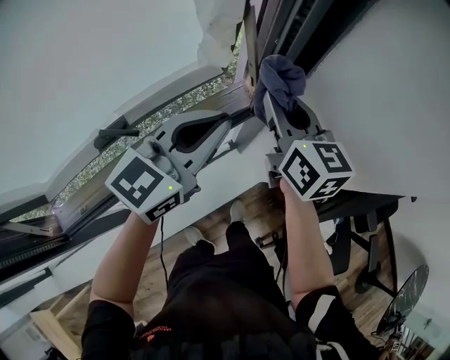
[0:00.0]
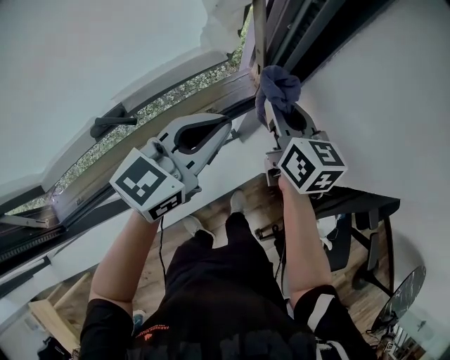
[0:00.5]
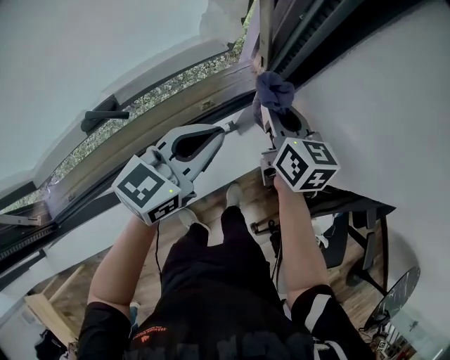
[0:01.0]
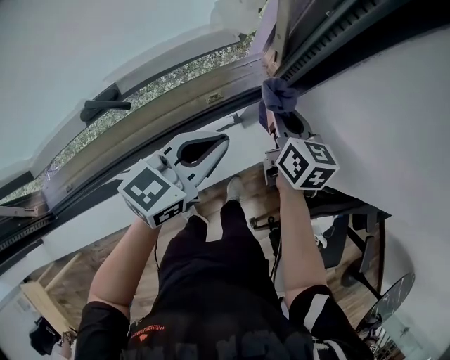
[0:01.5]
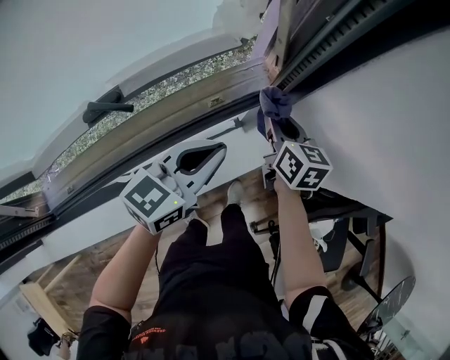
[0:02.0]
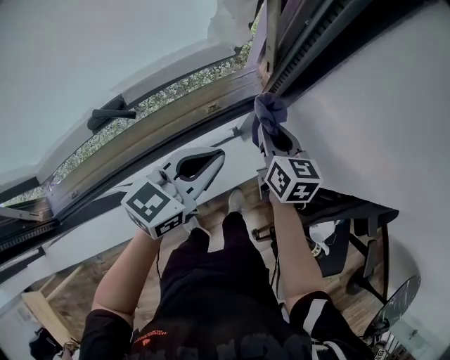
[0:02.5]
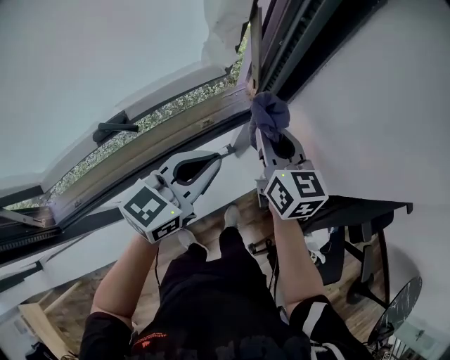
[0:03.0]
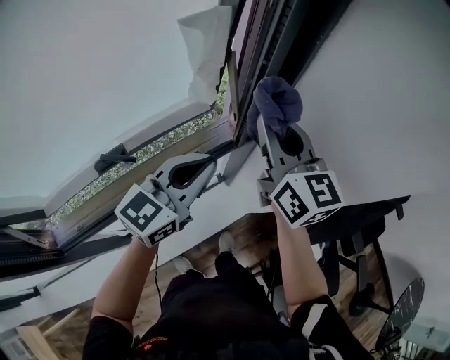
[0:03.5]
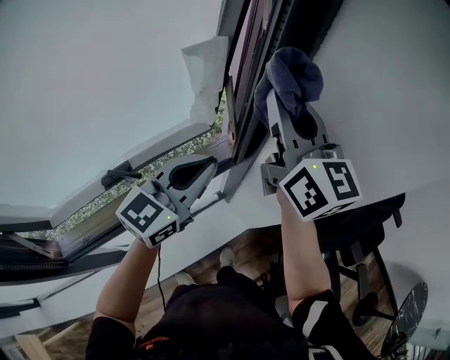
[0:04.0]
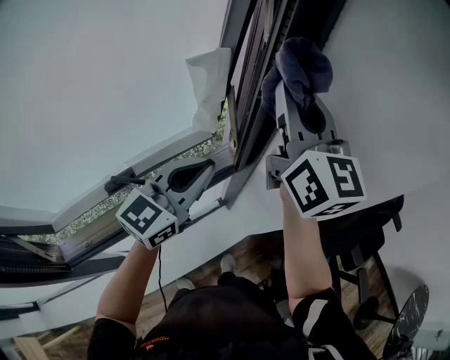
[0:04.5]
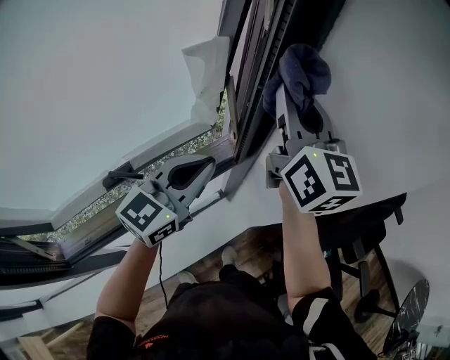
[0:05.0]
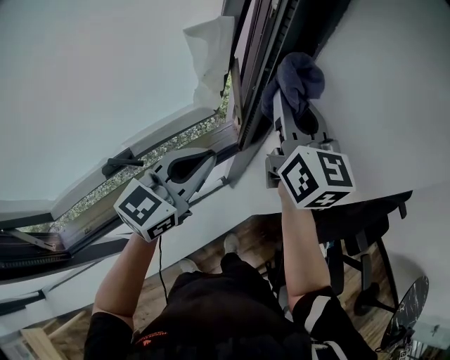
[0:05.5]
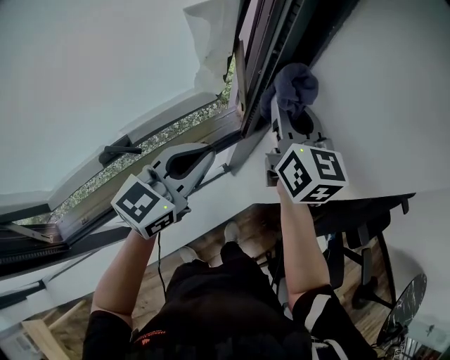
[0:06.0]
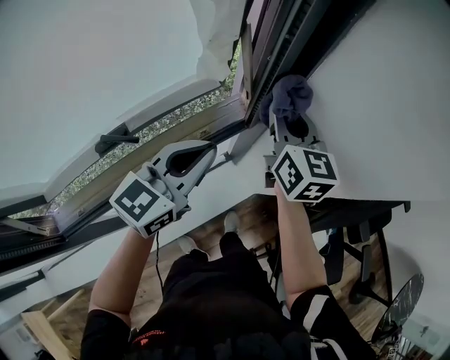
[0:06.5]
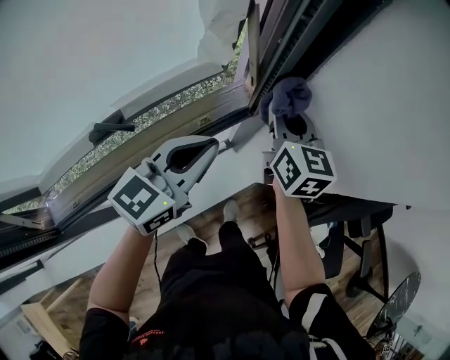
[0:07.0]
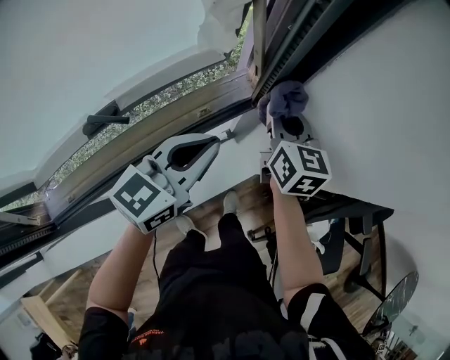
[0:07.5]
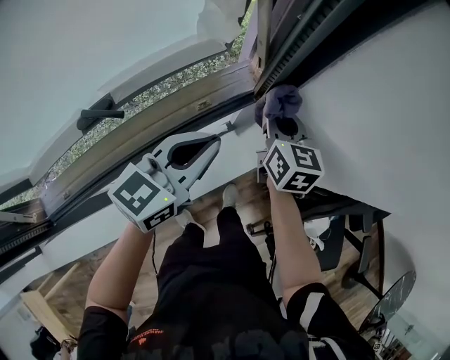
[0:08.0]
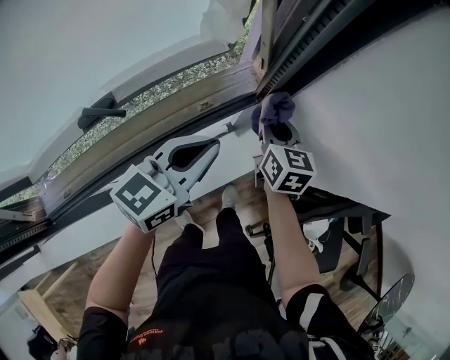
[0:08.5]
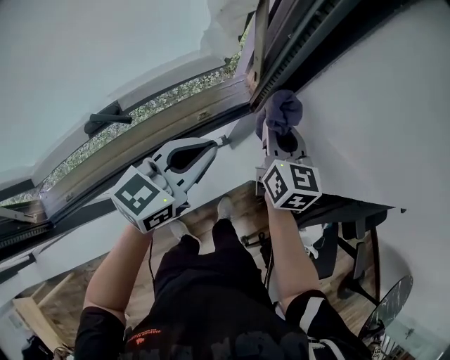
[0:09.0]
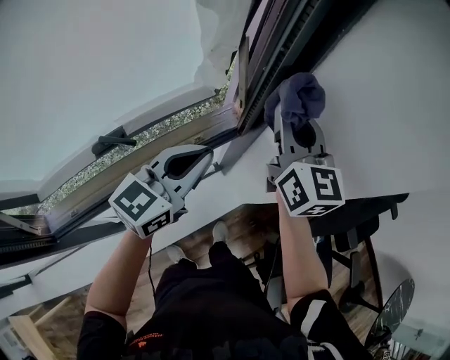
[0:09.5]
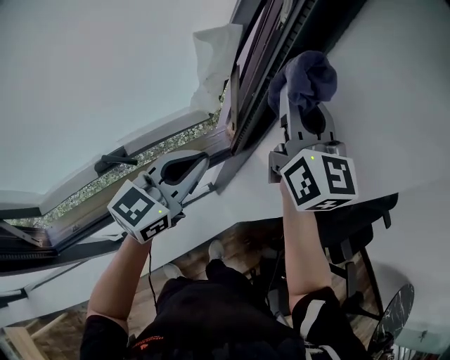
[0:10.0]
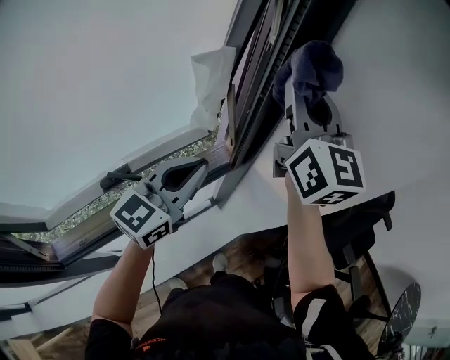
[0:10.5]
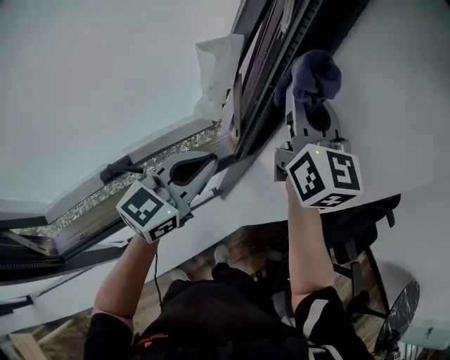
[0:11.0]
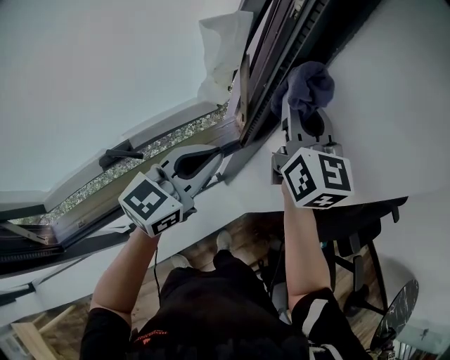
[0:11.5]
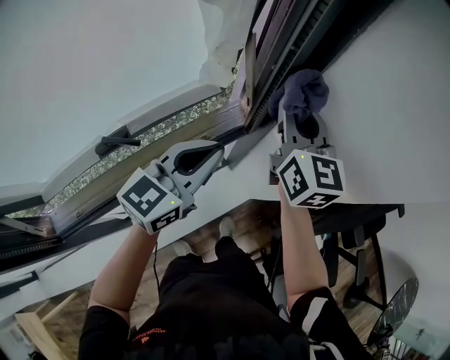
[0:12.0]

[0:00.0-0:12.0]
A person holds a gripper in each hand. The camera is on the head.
0:00.0 to 0:02.0: Both grippers travel together downward, roughly 15 cm.
0:02.0 to 0:04.0: The right gripper goes some 40 cm upward, and tilts its fingers about 40 degrees upward, while the left gripper moves upward, some 20 cm, and turns by some 20 degrees.
0:04.0 to 0:06.0: The right gripper heads downward, covering approximately 15 cm, while the left gripper heads downward, covering about 5 cm.
0:06.0 to 0:08.0: The right gripper is displaced downward by roughly 25 cm. Meanwhile the left gripper moves downward, about 10 cm.
0:08.0 to 0:10.0: The right gripper moves upward, approximately 35 cm, and tilts its fingers about 30 degrees upward. Meanwhile the left gripper moves upward, approximately 15 cm.
0:10.0 to 0:12.0: The right gripper moves downward, some 15 cm, while the left gripper moves downward, approximately 5 cm.

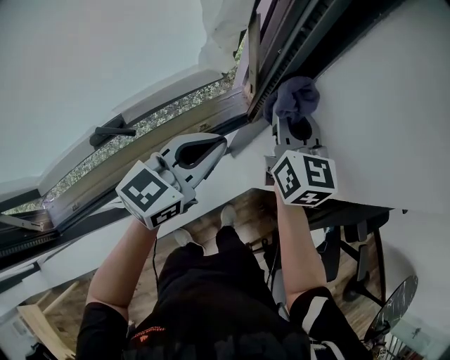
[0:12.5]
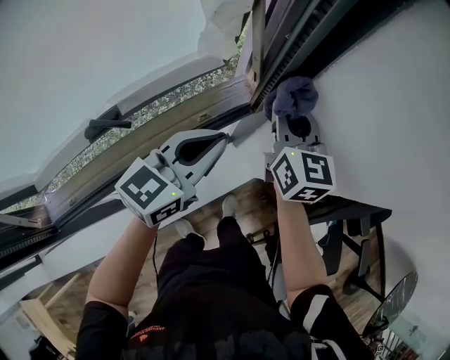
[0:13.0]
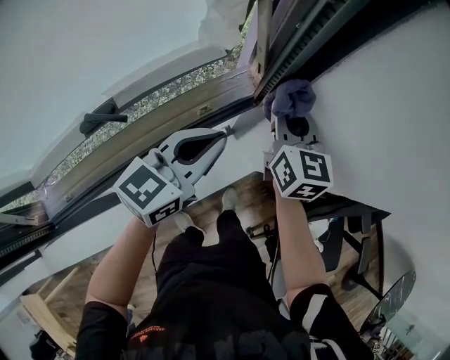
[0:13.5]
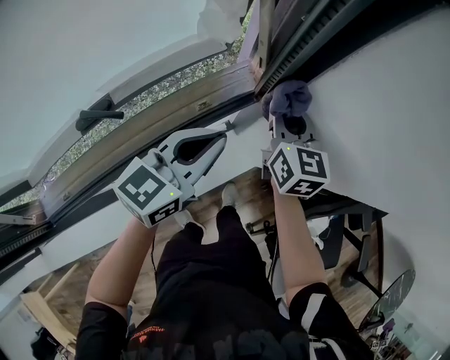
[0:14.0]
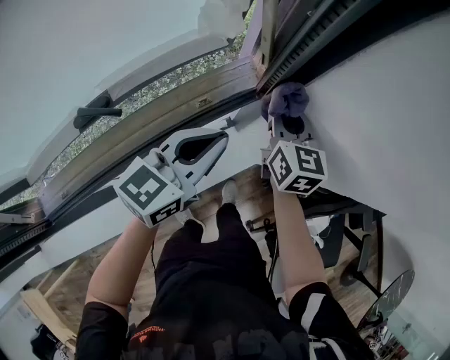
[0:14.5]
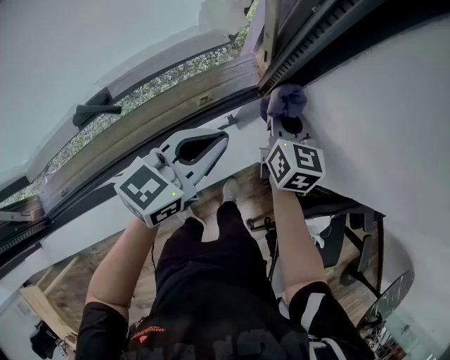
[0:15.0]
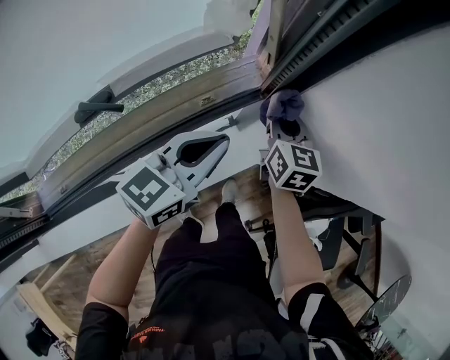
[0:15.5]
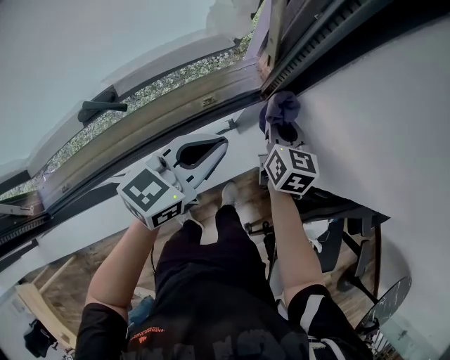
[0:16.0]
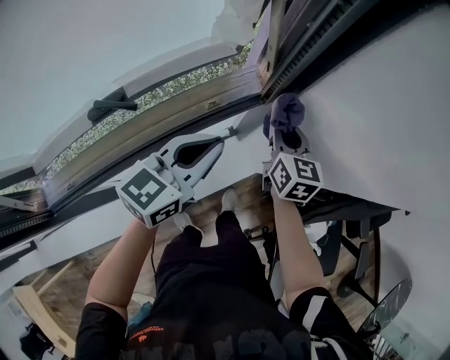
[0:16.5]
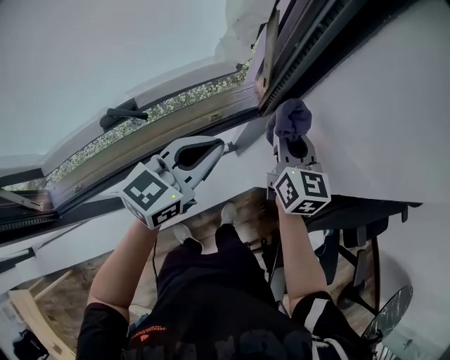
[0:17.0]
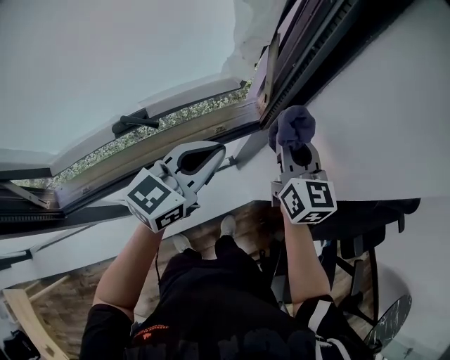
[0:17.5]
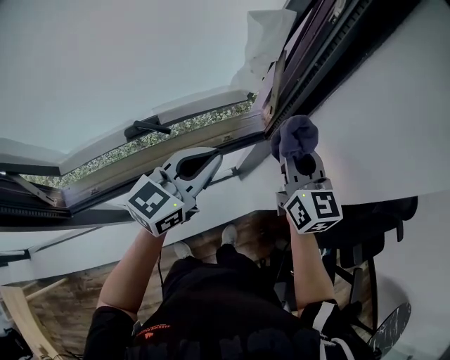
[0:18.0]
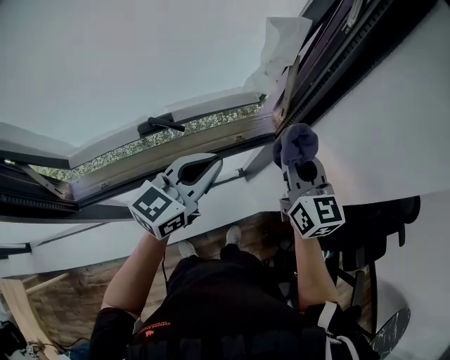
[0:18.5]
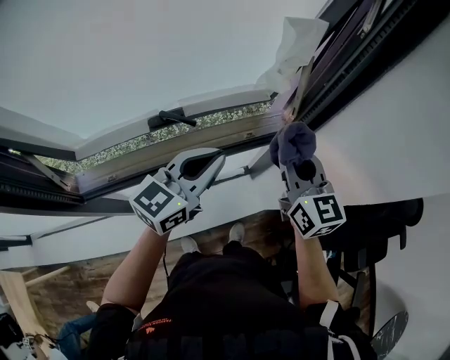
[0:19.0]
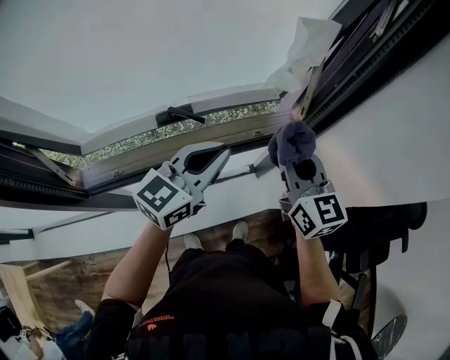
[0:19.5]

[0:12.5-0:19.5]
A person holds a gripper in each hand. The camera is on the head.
0:12.5 to 0:14.5: The left gripper shifts approximately 10 cm downward, while the right gripper travels downward by about 15 cm.
0:14.5 to 0:16.0: The right gripper shifts approximately 5 cm downward.
0:16.0 to 0:17.5: The left gripper heads upward, covering roughly 10 cm; the right gripper travels upward by approximately 20 cm, and turns by some 20 degrees.
0:17.5 to 0:19.5: The right gripper goes roughly 15 cm to the left and backward, while the left gripper shifts roughly 10 cm to the left.

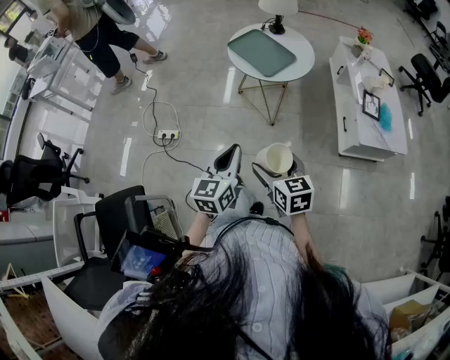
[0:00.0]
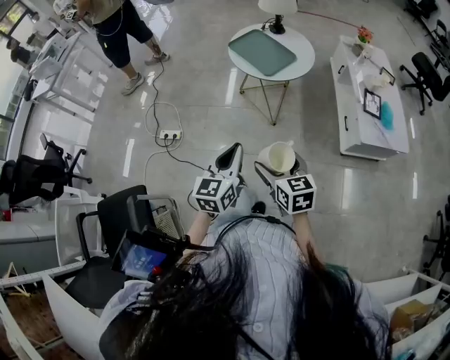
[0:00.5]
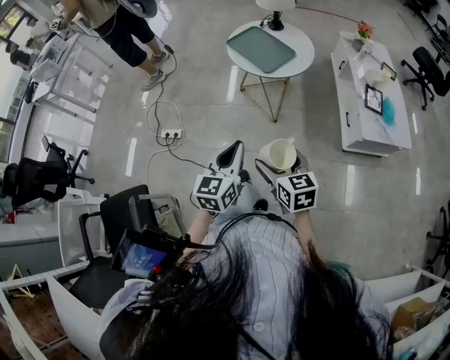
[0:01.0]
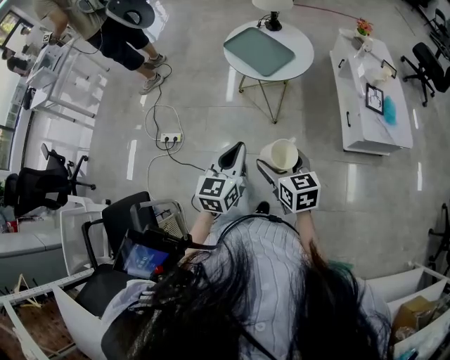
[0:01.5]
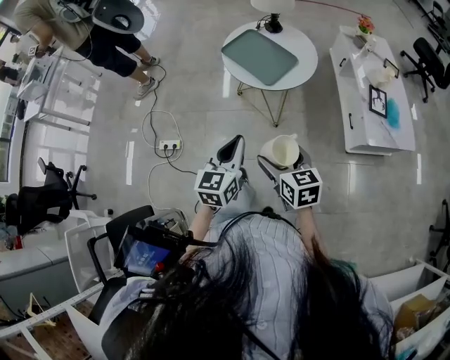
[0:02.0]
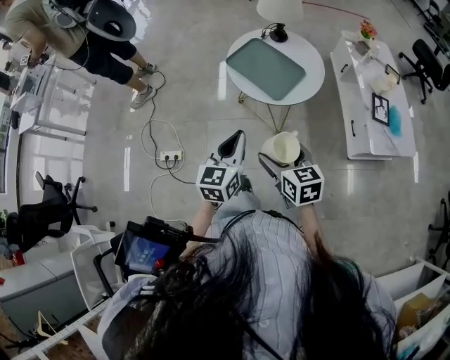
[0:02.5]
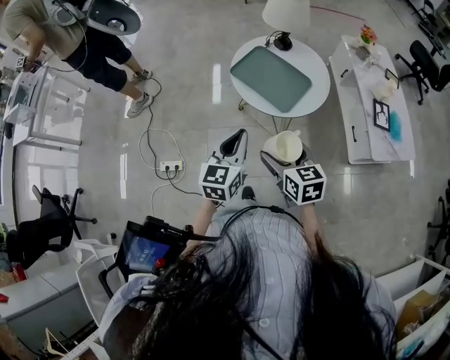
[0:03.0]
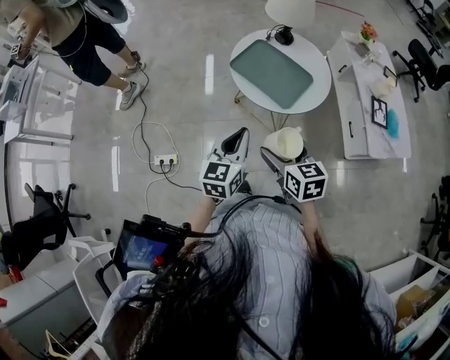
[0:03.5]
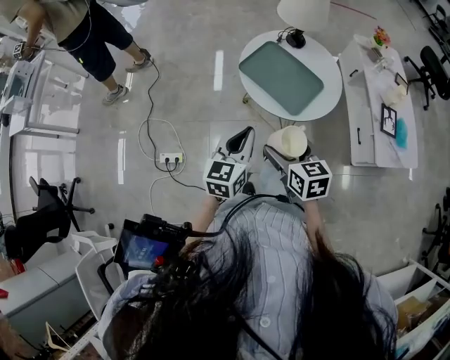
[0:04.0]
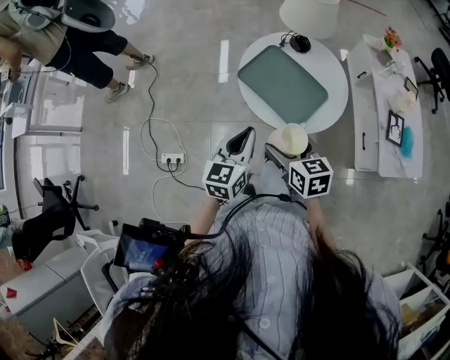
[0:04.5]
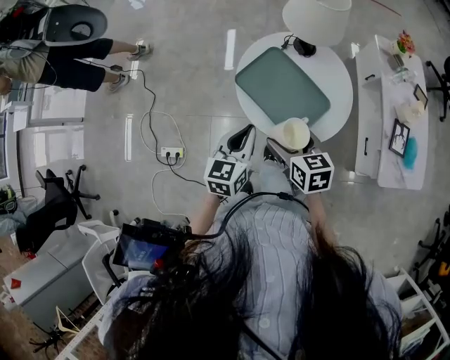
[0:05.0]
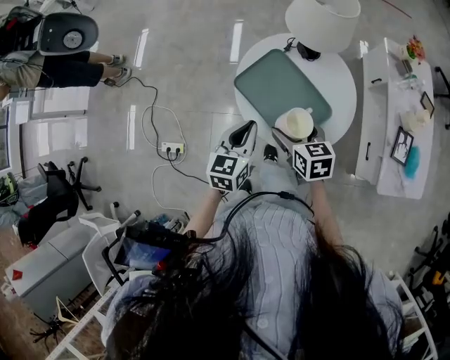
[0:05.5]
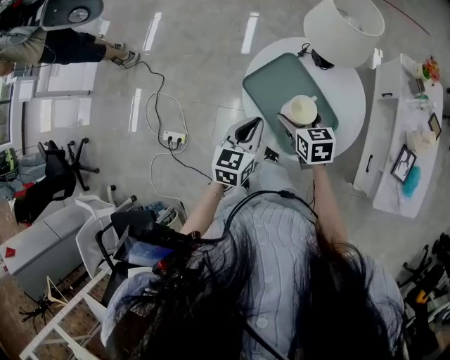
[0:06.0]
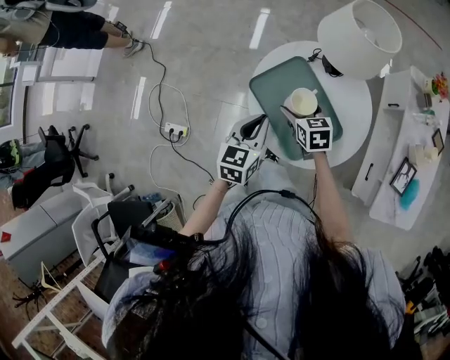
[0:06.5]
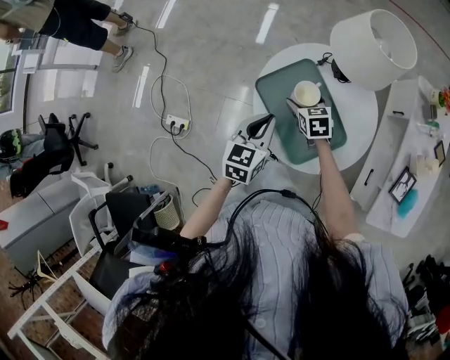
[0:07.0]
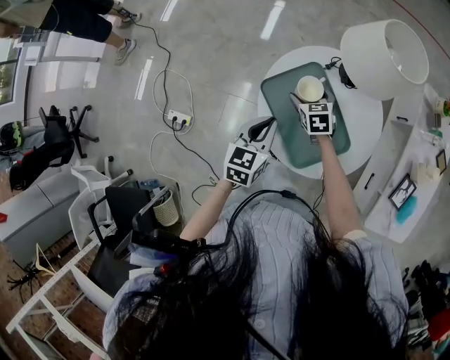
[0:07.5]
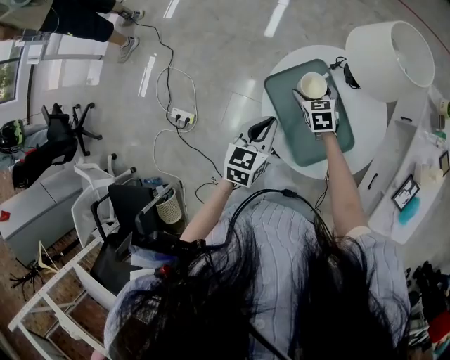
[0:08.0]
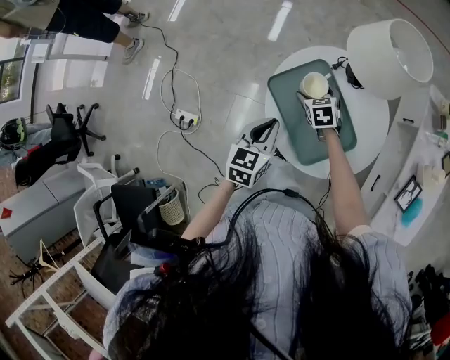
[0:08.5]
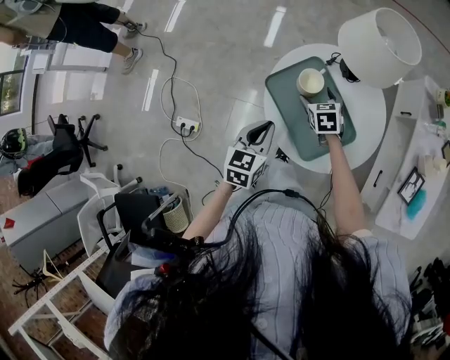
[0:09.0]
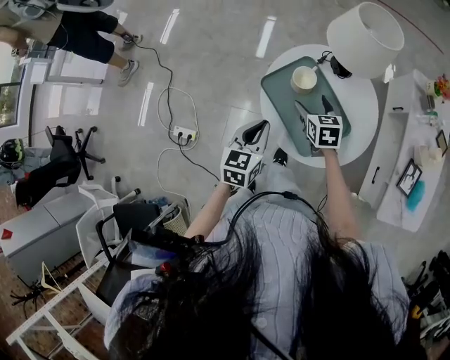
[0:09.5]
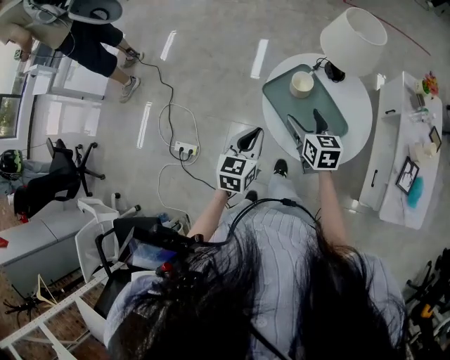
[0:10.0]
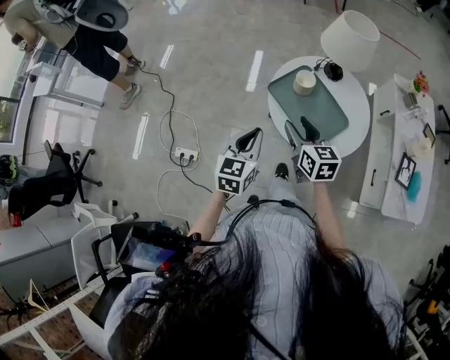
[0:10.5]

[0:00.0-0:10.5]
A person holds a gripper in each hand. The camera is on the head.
0:00.0 to 0:02.0: The two grippers go some 15 cm forward.
0:02.0 to 0:04.0: The right gripper travels forward and to the left by roughly 20 cm. The left gripper goes some 20 cm forward.
0:04.0 to 0:06.5: The right gripper is displaced forward and downward by about 35 cm; the left gripper travels forward by approximately 20 cm.
0:06.5 to 0:08.5: The right gripper is displaced forward and downward by approximately 10 cm.
0:08.5 to 0:10.5: The left gripper moves backward, upward and to the left, roughly 15 cm. Meanwhile the right gripper shifts some 30 cm upward and backward, tilts its fingers some 30 degrees upward, and closes its fingers.
